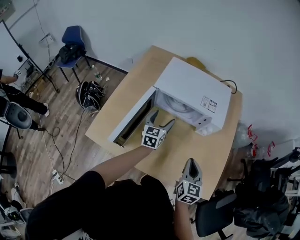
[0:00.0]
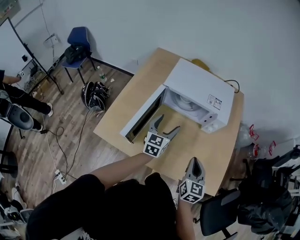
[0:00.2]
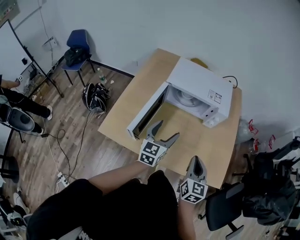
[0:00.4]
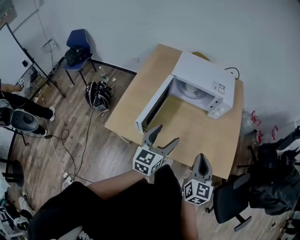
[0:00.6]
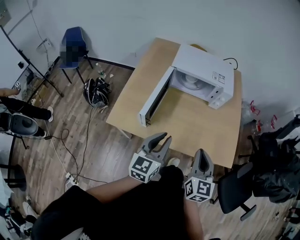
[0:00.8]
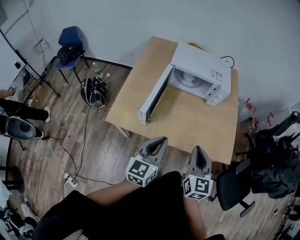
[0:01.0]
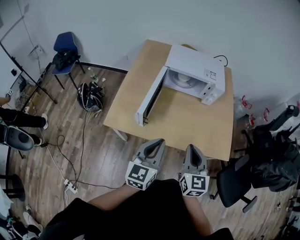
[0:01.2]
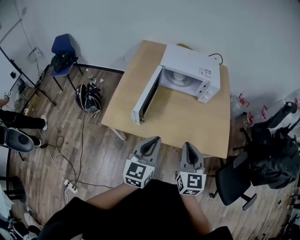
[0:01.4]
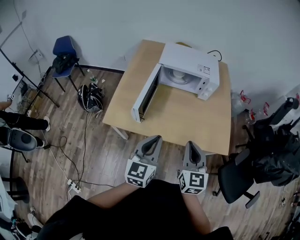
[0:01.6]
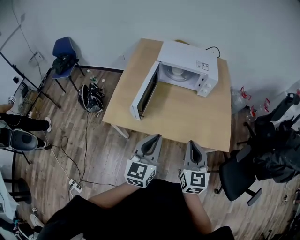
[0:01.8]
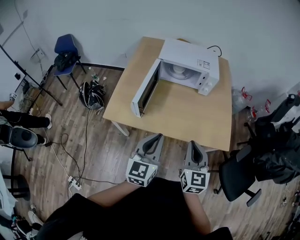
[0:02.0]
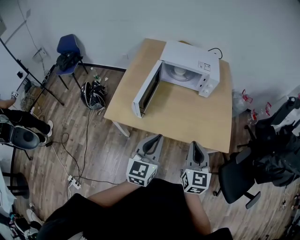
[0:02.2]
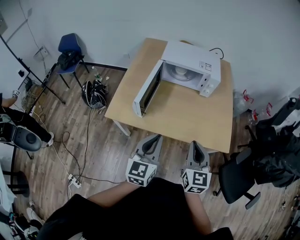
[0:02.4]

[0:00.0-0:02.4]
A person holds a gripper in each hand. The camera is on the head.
0:00.0 to 0:01.2: The left gripper is displaced backward and upward by about 40 cm, and closes its fingers. The right gripper travels backward, to the left and upward by roughly 25 cm.
0:01.2 to 0:02.4: The right gripper heads to the right, covering approximately 5 cm; the left gripper moves about 5 cm.

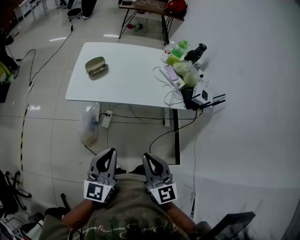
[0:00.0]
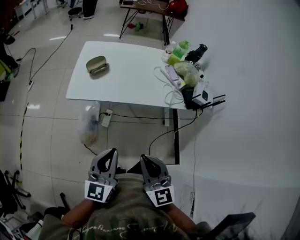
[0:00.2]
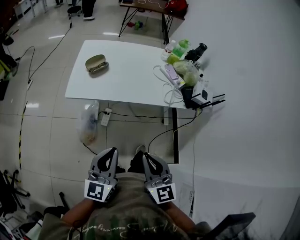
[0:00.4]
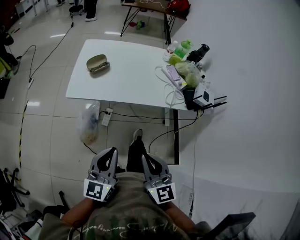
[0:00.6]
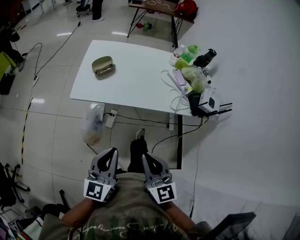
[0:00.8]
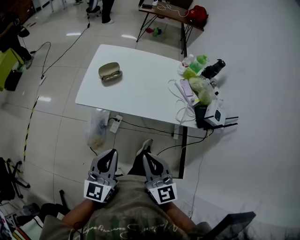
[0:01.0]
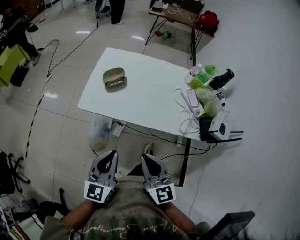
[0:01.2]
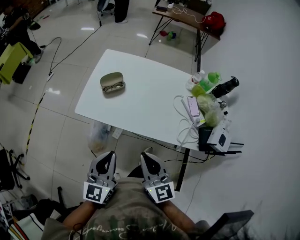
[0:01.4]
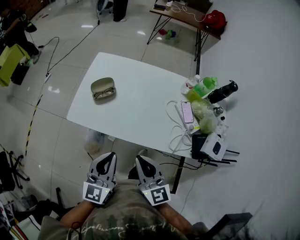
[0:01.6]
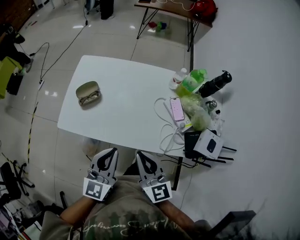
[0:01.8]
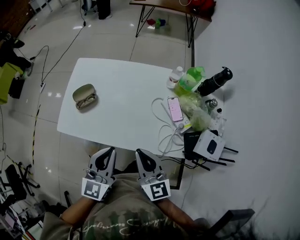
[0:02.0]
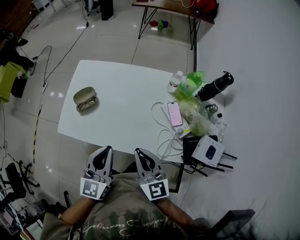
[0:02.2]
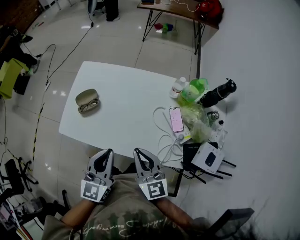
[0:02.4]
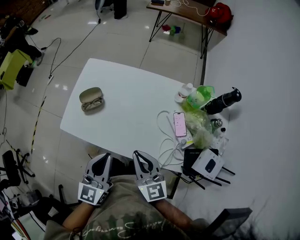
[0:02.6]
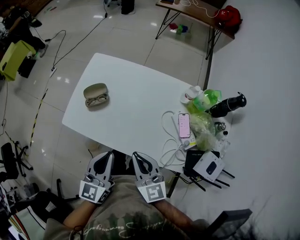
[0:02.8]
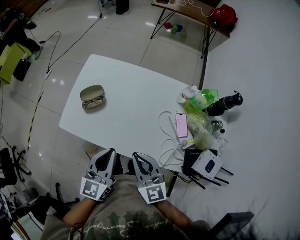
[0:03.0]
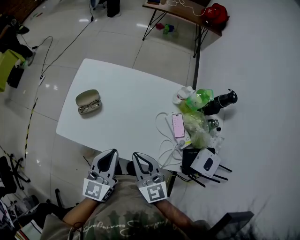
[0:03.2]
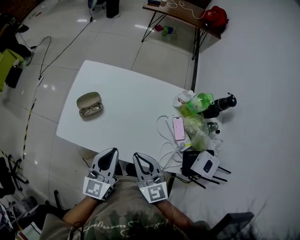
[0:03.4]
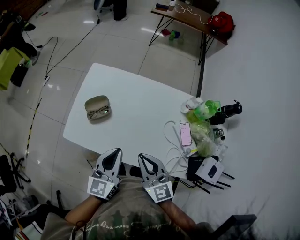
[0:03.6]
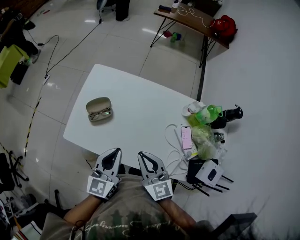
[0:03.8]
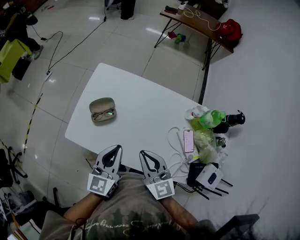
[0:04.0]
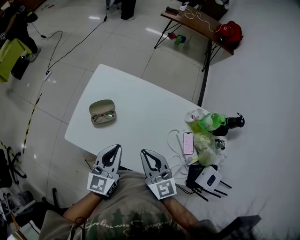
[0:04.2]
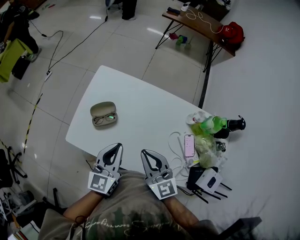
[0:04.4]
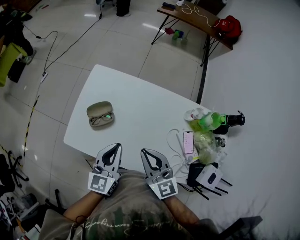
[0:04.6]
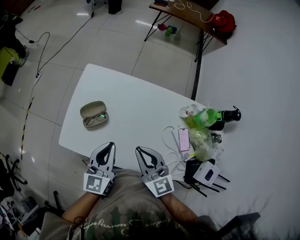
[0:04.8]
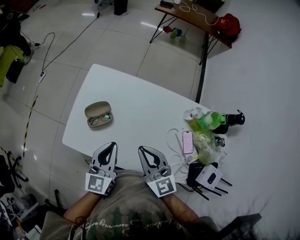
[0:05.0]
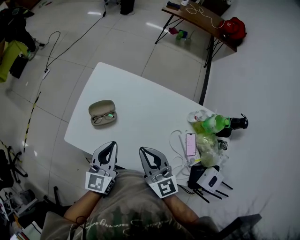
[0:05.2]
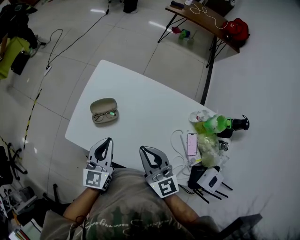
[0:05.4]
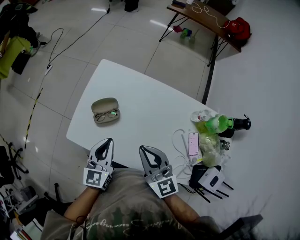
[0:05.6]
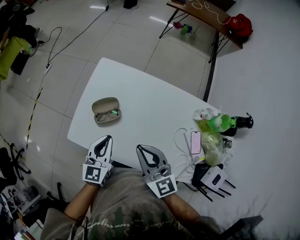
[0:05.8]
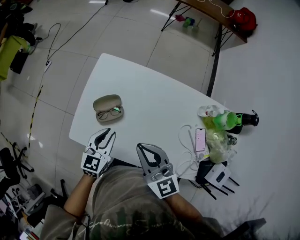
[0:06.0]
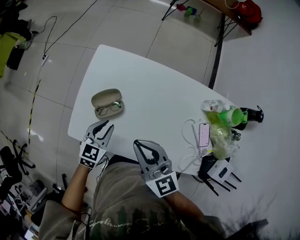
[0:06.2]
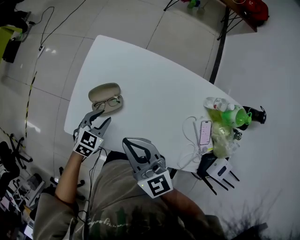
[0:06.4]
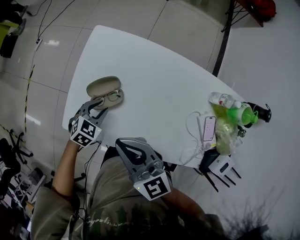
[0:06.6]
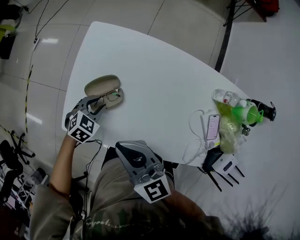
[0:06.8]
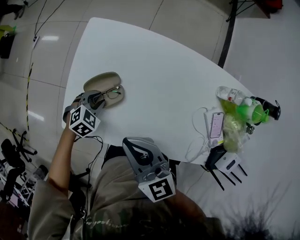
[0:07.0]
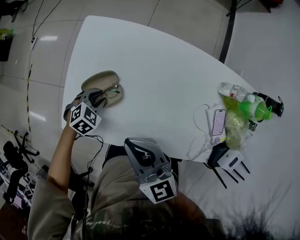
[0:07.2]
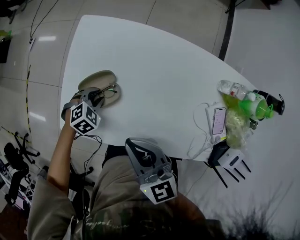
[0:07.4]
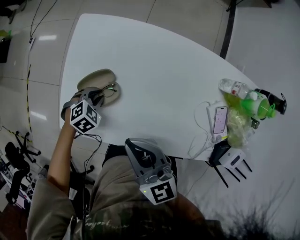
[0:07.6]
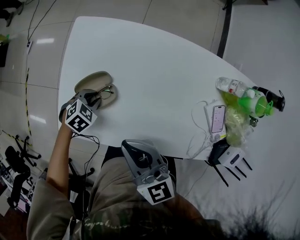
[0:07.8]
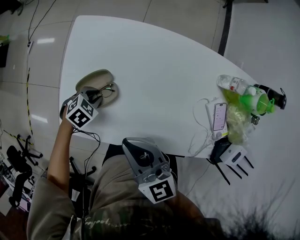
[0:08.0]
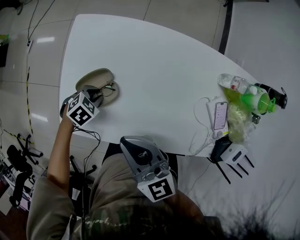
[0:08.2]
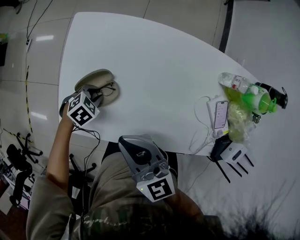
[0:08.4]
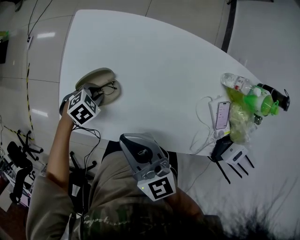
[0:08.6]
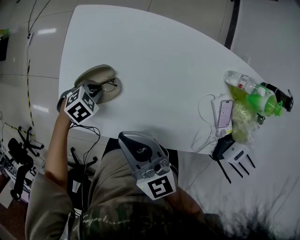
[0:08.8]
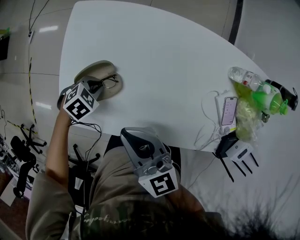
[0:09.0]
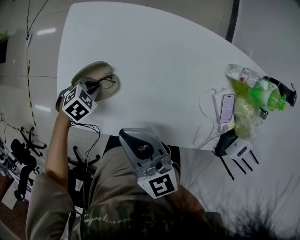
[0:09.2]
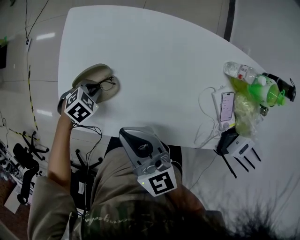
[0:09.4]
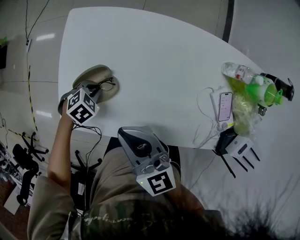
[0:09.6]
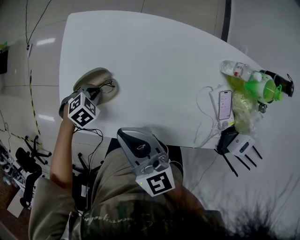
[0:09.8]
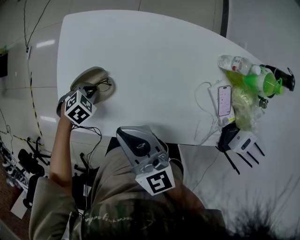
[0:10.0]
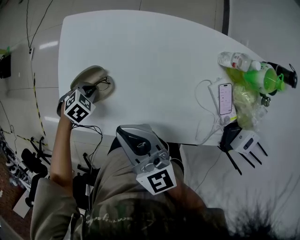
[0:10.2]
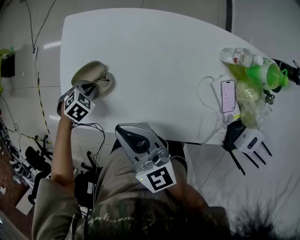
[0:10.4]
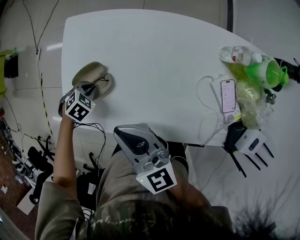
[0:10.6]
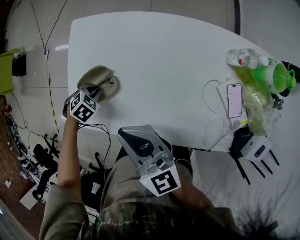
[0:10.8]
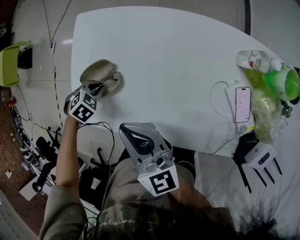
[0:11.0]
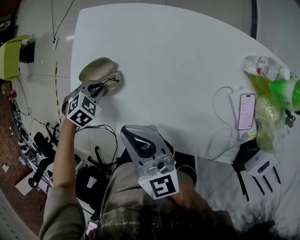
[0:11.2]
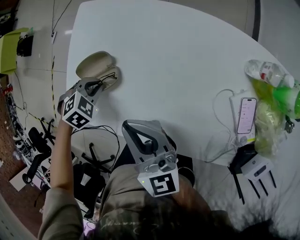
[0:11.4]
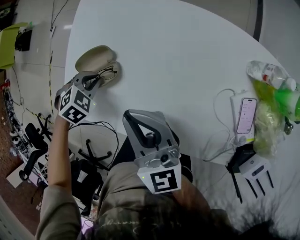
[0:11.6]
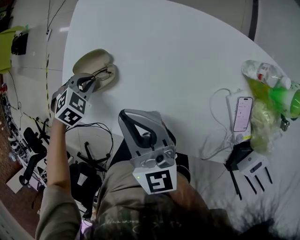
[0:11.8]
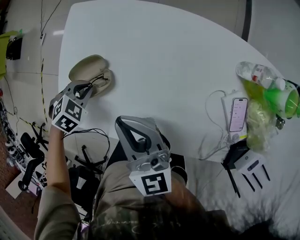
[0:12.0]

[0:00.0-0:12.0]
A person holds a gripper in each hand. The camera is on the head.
0:00.0 to 0:01.6: Both grippers travel together forward, approximately 25 cm.
0:01.6 to 0:03.0: The two grippers go approximately 15 cm forward and to the right.
0:03.0 to 0:04.4: The two grippers go about 15 cm forward and to the left.
0:04.4 to 0:06.0: The right gripper shifts by approximately 5 cm; the left gripper goes some 15 cm downward, to the left and forward.
0:06.0 to 0:07.6: The left gripper shifts roughly 20 cm downward, and points its fingers about 50 degrees further downward, while the right gripper goes about 10 cm downward.
0:07.6 to 0:10.4: The grippers stay close to where they were, moving slightly.
0:10.4 to 0:12.0: The right gripper moves approximately 5 cm.

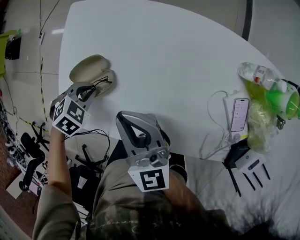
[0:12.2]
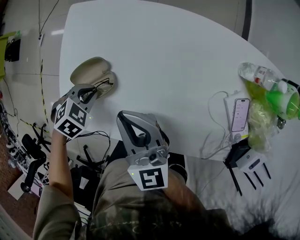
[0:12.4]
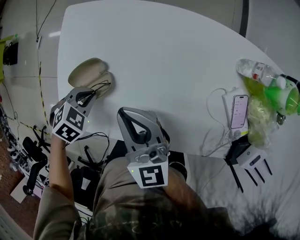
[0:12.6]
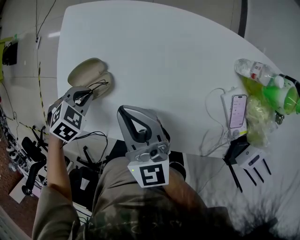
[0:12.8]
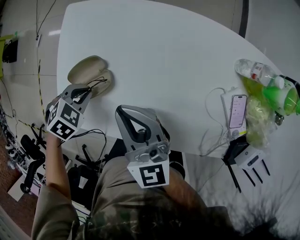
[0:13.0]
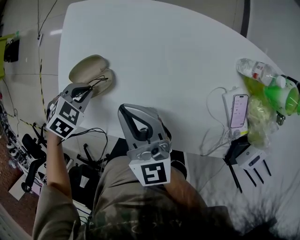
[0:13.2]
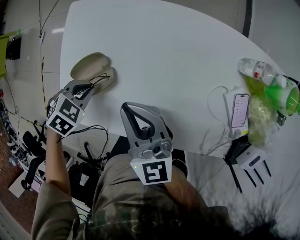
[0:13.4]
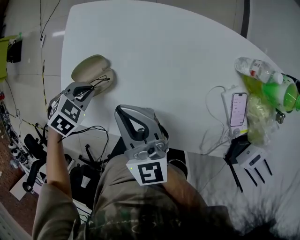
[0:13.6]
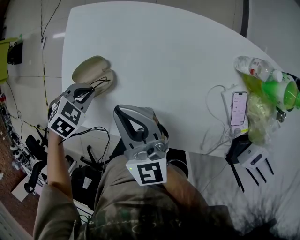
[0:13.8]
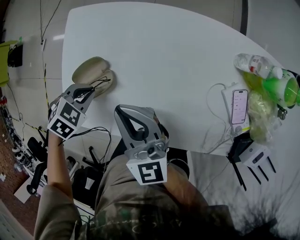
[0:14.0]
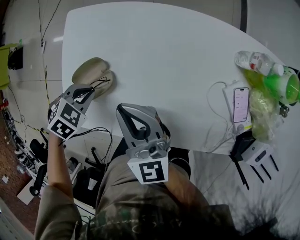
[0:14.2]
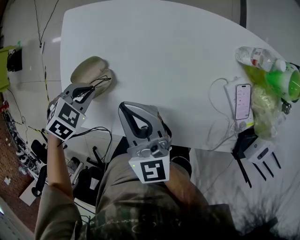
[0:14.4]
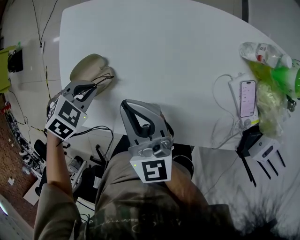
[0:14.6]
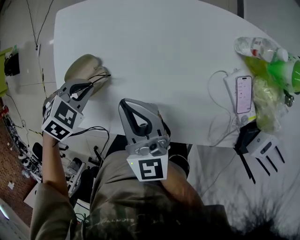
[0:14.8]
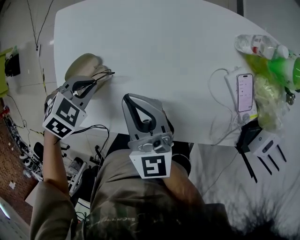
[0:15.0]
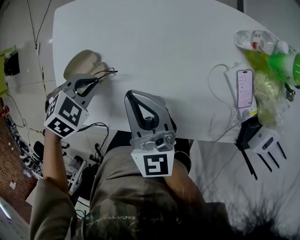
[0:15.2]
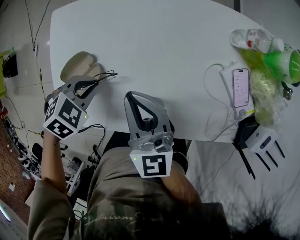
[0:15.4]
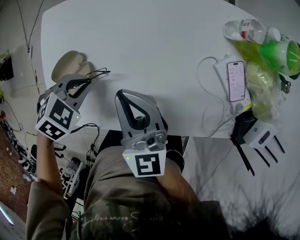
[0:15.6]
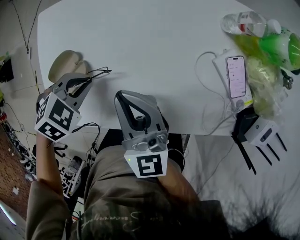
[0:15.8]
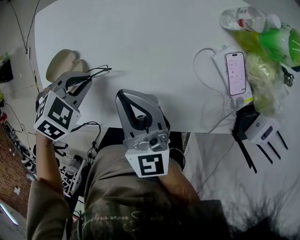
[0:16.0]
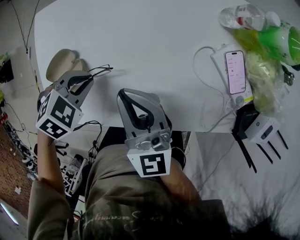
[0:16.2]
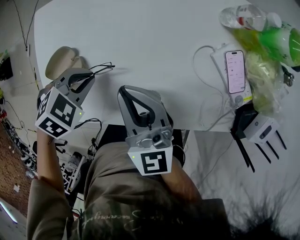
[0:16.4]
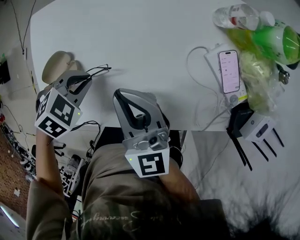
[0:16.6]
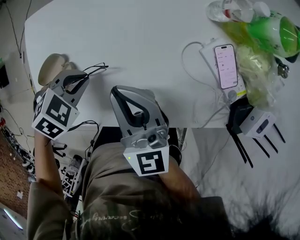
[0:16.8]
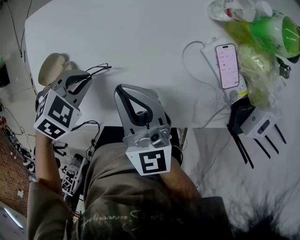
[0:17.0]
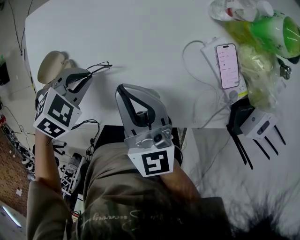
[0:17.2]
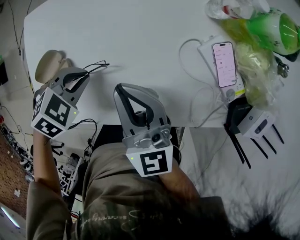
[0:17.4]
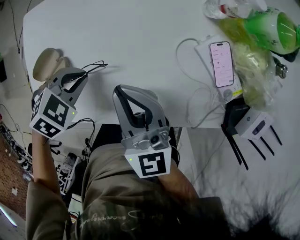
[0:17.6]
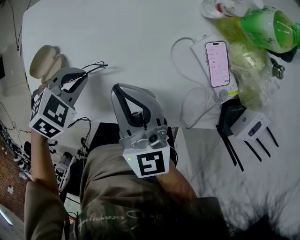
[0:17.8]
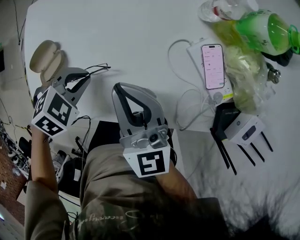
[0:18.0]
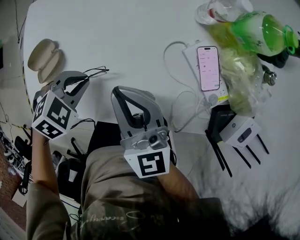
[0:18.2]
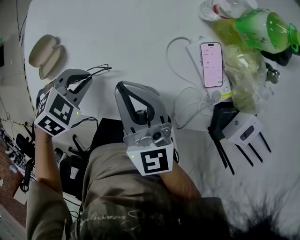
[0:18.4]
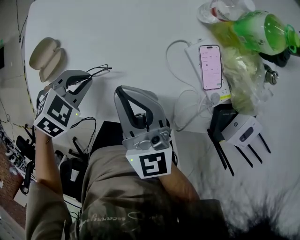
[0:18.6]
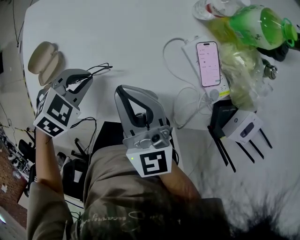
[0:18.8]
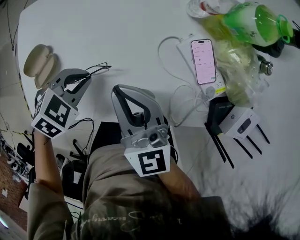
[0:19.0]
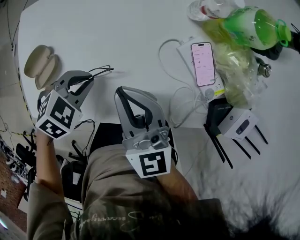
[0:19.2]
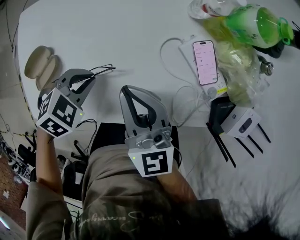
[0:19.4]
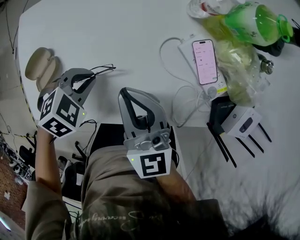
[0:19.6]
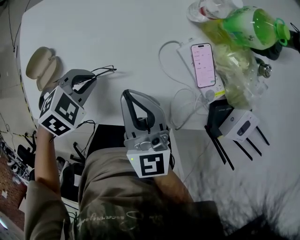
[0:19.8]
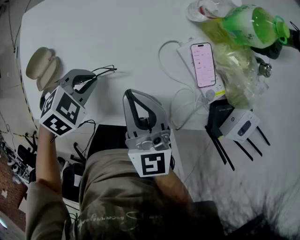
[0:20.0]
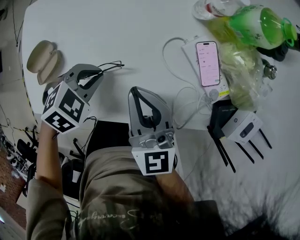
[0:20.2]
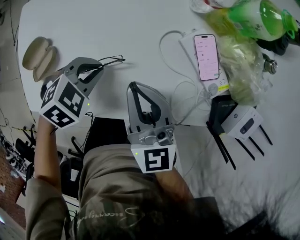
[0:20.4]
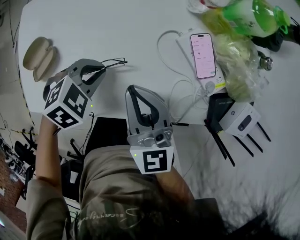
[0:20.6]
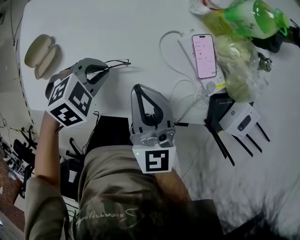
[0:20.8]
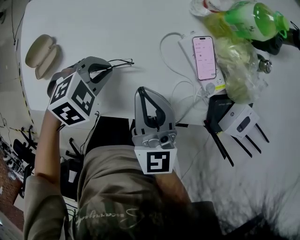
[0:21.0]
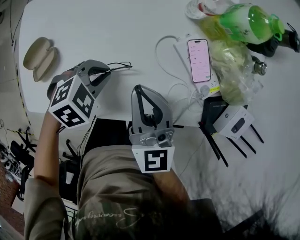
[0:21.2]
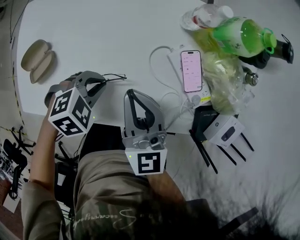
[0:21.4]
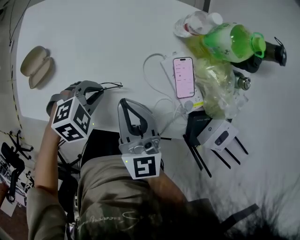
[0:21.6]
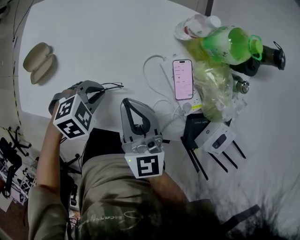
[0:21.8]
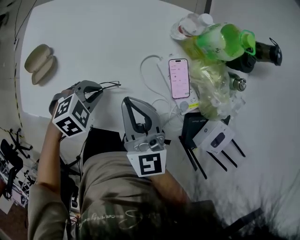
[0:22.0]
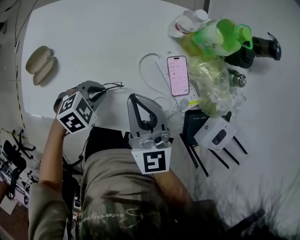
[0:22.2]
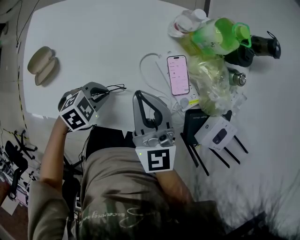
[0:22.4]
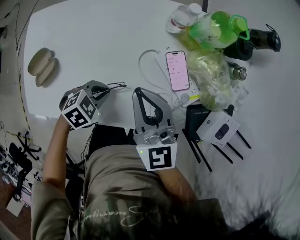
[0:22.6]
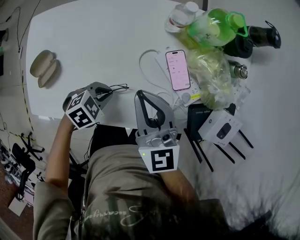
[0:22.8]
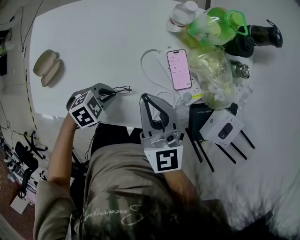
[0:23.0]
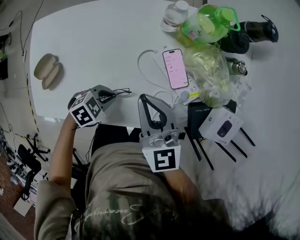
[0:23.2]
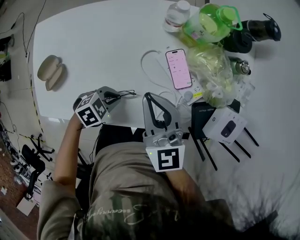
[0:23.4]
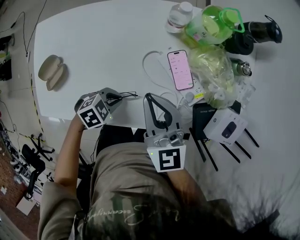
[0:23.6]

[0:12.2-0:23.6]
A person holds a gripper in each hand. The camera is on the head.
0:12.2 to 0:13.6: There are only small adjustments of the grippers.
0:13.6 to 0:15.0: The left gripper changes place by approximately 5 cm.
0:15.0 to 0:16.4: The left gripper changes place by about 10 cm. Meanwhile the right gripper ends up about 5 cm from where it was.
0:16.4 to 0:17.8: The left gripper moves about 5 cm, while the right gripper moves approximately 5 cm.
0:17.8 to 0:19.4: The left gripper ends up roughly 5 cm from where it was.
0:19.4 to 0:20.8: The left gripper goes roughly 5 cm to the right.
0:20.8 to 0:22.2: The right gripper changes place by roughly 5 cm.
0:22.2 to 0:23.6: The left gripper shifts by about 5 cm.
